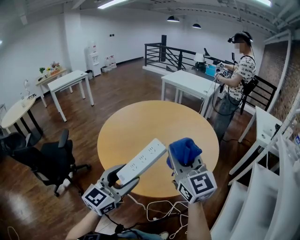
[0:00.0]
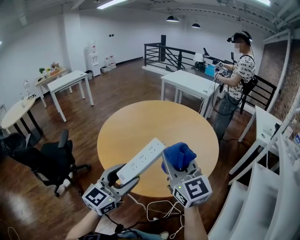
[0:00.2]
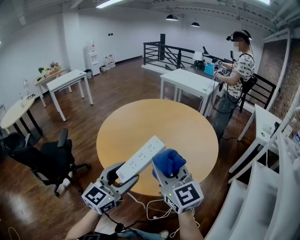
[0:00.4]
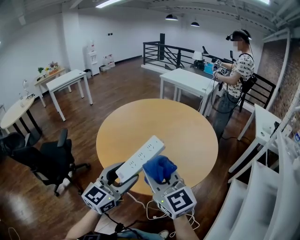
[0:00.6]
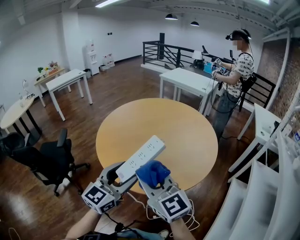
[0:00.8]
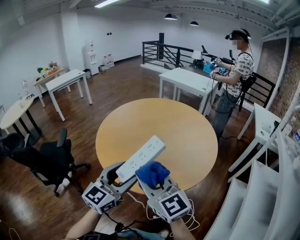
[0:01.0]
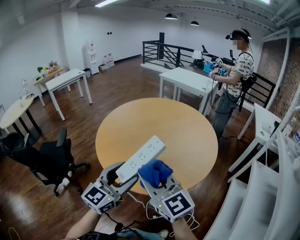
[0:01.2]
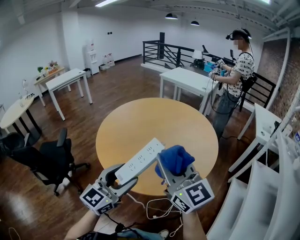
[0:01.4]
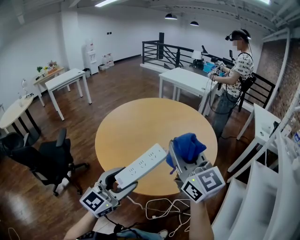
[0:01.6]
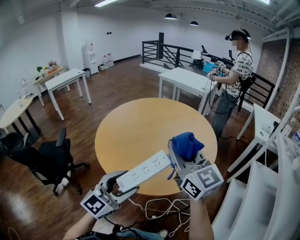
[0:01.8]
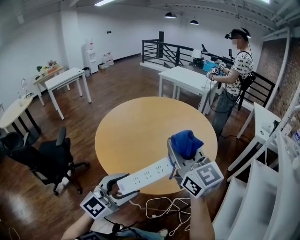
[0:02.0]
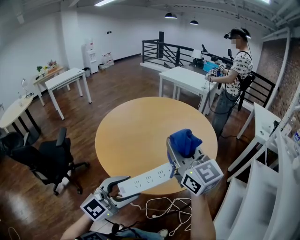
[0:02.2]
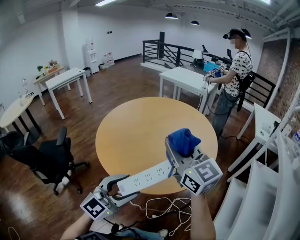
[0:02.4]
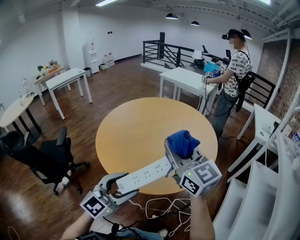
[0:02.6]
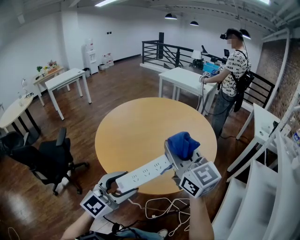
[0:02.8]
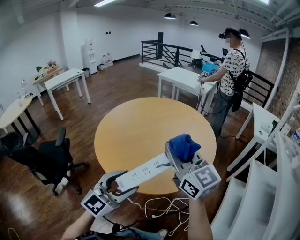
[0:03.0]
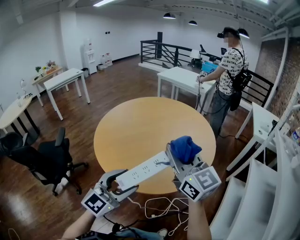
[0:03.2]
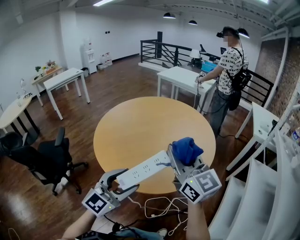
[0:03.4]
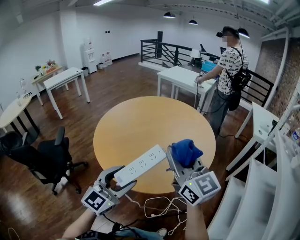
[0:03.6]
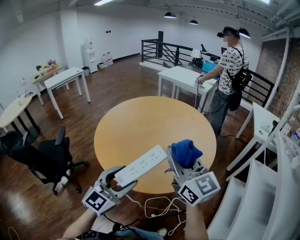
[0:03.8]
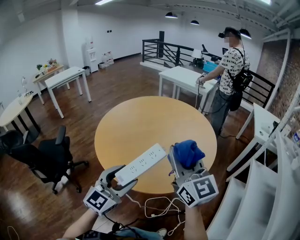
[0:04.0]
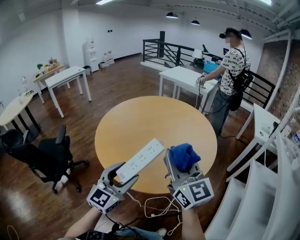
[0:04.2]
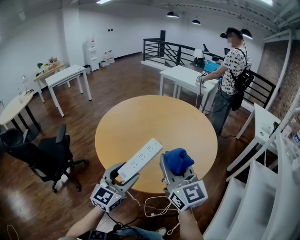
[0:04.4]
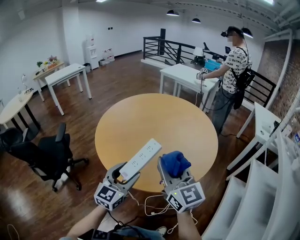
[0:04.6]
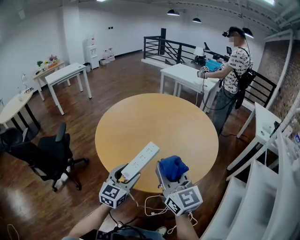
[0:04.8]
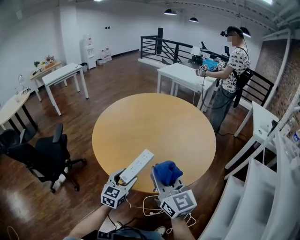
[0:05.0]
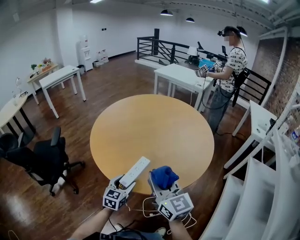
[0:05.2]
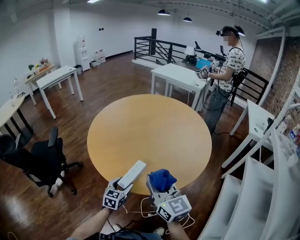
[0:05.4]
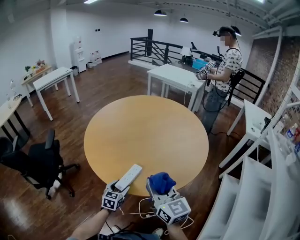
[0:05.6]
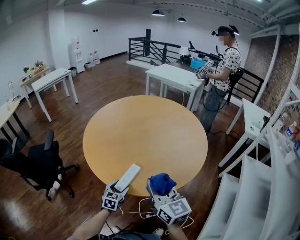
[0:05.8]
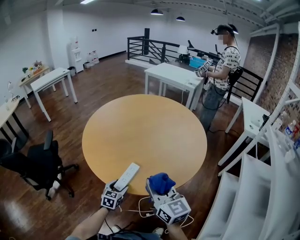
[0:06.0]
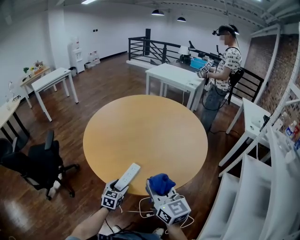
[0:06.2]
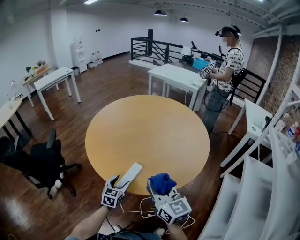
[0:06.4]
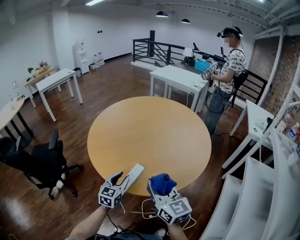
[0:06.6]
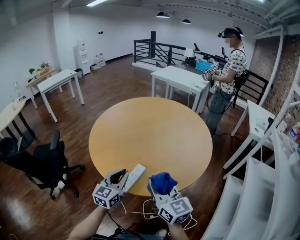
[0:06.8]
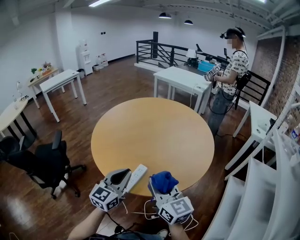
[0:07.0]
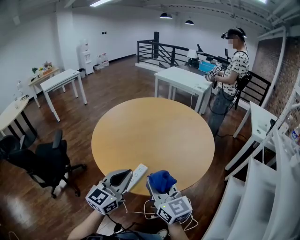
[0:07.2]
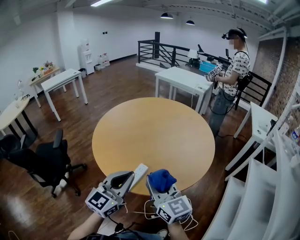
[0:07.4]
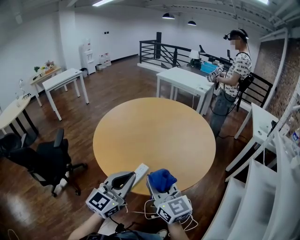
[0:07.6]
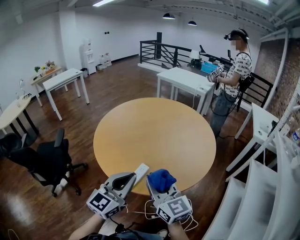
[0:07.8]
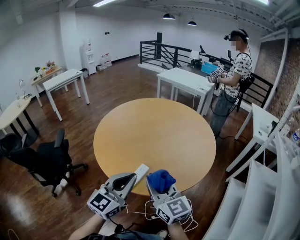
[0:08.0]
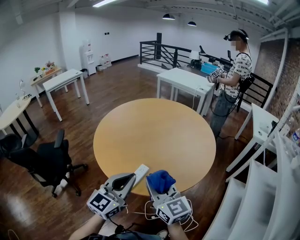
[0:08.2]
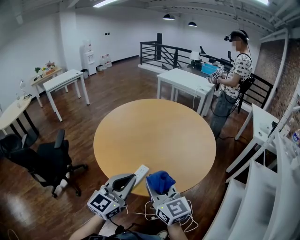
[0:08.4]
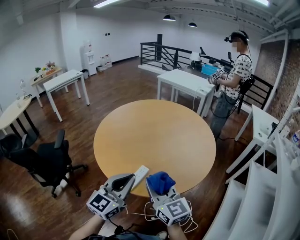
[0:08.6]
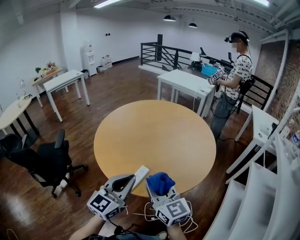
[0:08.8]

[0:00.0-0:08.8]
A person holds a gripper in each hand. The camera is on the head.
0:00.0 to 0:01.4: The right gripper travels to the left and back again, some 10 cm each way.
0:03.0 to 0:04.4: The right gripper shifts by about 5 cm. Meanwhile the left gripper goes approximately 5 cm forward.
0:04.4 to 0:05.8: The right gripper heads downward, covering about 10 cm; the left gripper moves downward, about 25 cm, and angles its fingers downward, by about 30 degrees.
0:05.8 to 0:07.4: The left gripper travels upward by roughly 30 cm, tips its fingers upward by about 40 degrees, and closes its fingers.
0:07.4 to 0:08.8: The two grippers keep their place.

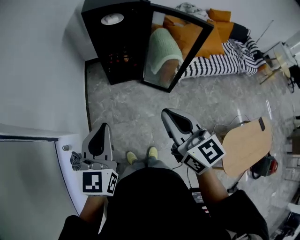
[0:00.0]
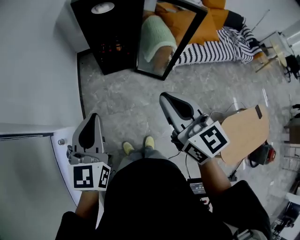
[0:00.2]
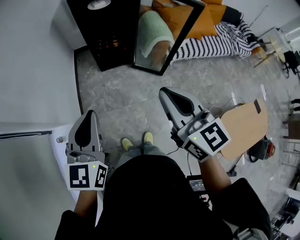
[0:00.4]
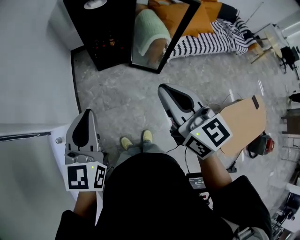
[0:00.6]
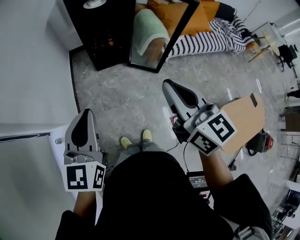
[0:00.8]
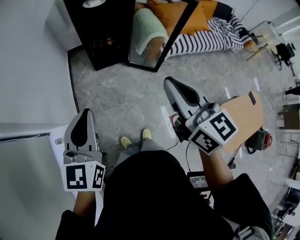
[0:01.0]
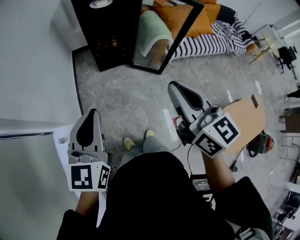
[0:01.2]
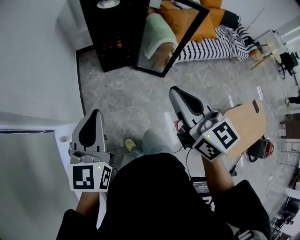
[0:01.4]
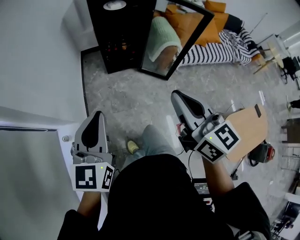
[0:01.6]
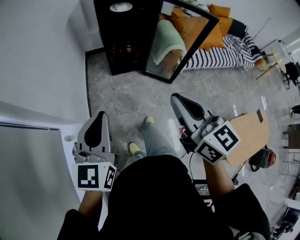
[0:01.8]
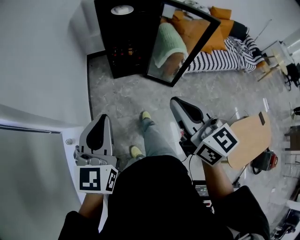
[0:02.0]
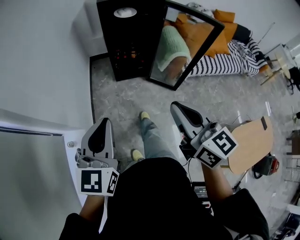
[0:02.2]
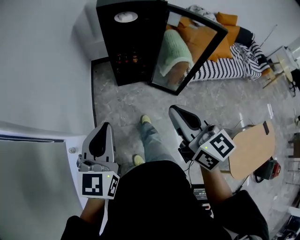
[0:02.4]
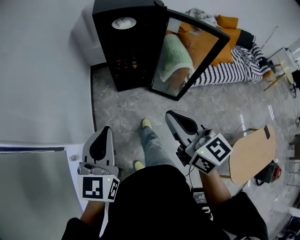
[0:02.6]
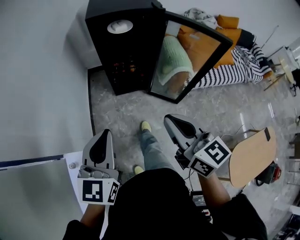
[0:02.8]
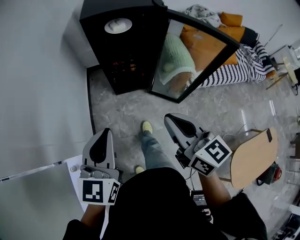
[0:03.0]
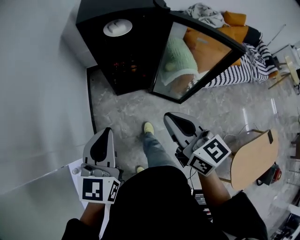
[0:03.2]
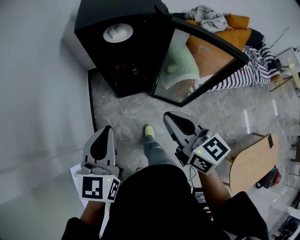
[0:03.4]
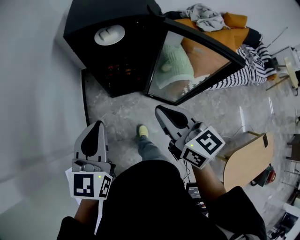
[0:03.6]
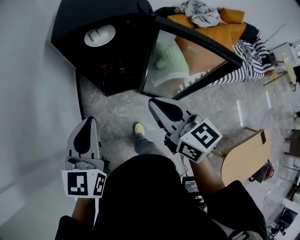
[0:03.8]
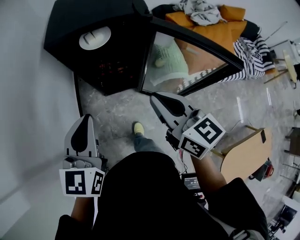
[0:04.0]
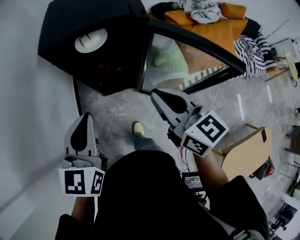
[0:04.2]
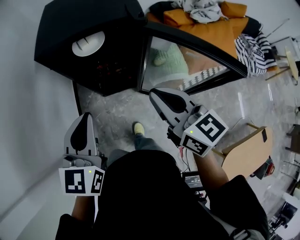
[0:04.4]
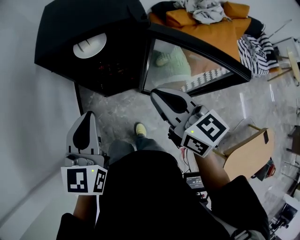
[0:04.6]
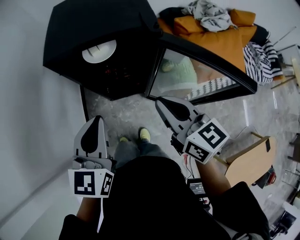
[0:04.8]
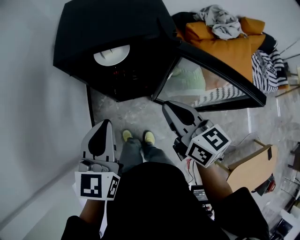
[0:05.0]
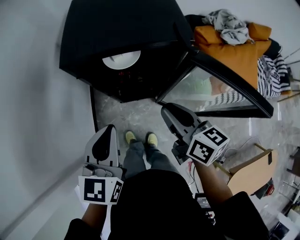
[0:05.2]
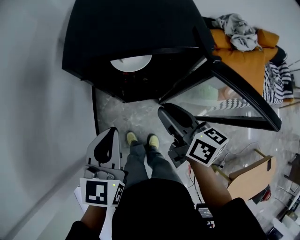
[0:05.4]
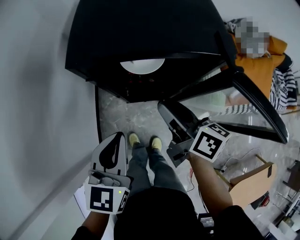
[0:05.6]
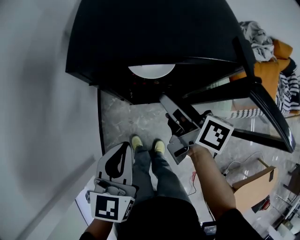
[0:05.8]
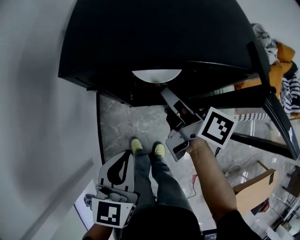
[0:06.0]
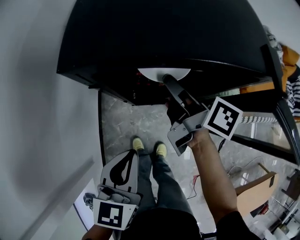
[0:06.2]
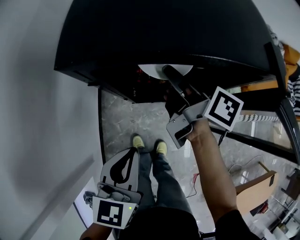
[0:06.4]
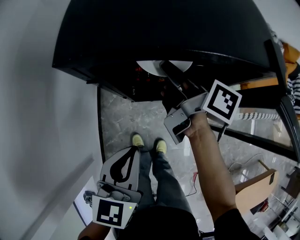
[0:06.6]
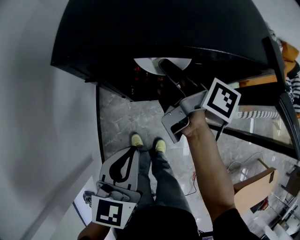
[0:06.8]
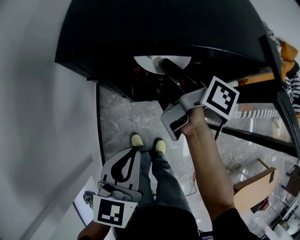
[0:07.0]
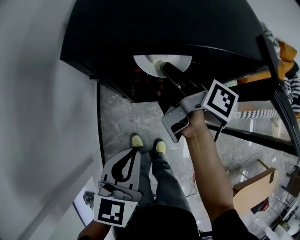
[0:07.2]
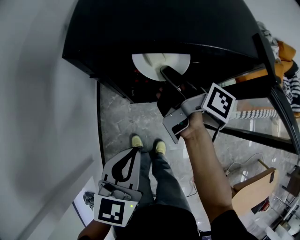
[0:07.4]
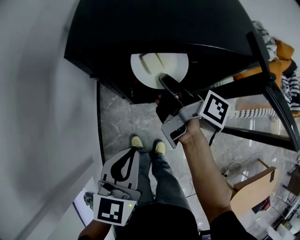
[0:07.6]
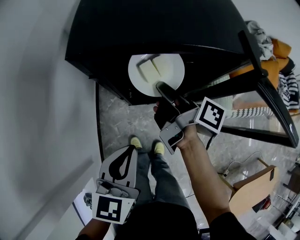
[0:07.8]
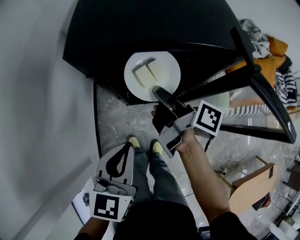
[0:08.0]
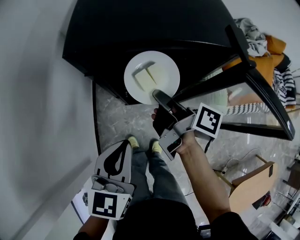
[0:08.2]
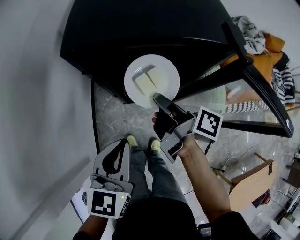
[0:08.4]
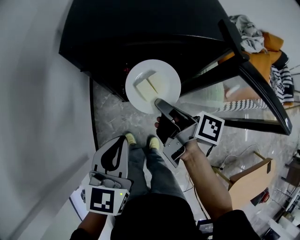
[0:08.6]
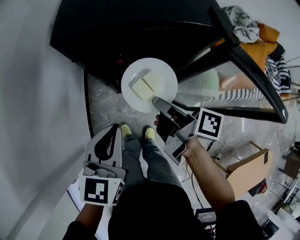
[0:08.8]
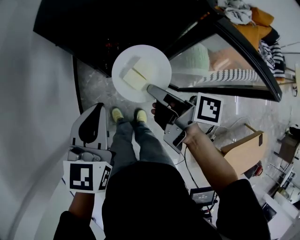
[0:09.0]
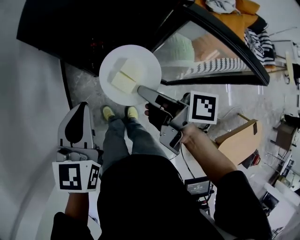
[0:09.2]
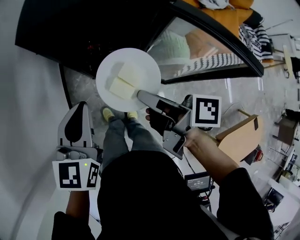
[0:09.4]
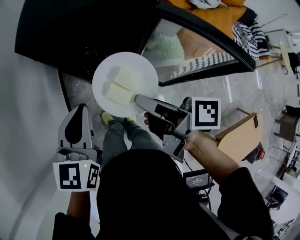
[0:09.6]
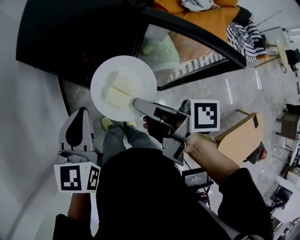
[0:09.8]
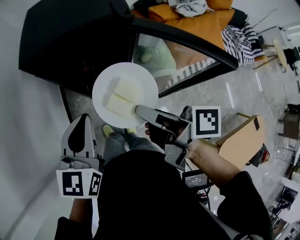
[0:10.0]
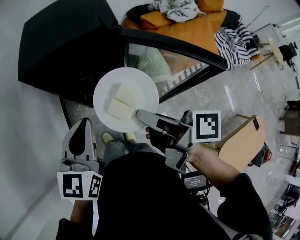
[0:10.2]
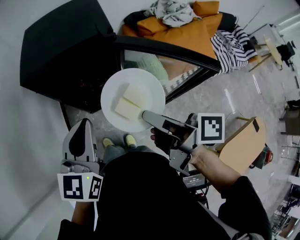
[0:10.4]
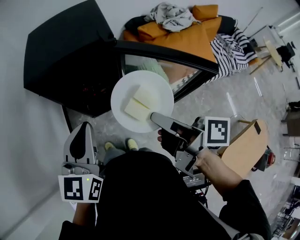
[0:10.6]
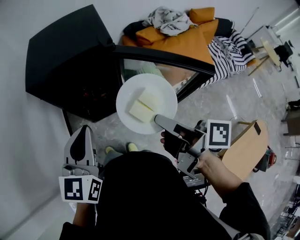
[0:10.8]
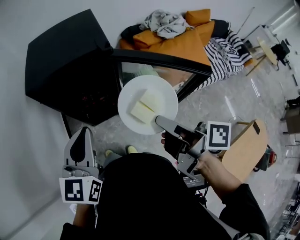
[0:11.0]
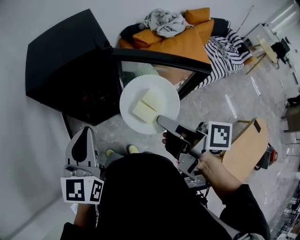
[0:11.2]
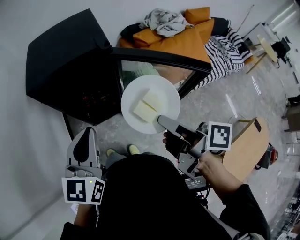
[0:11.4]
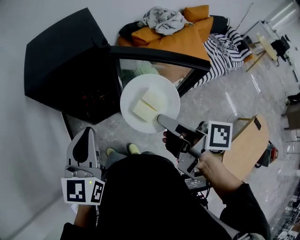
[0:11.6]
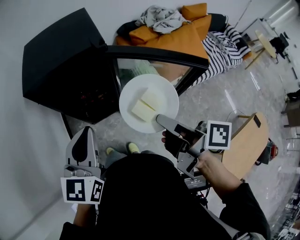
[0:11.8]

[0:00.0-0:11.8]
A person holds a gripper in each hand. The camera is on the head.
0:00.0 to 0:01.4: The left gripper goes roughly 5 cm to the left; the right gripper changes place by about 5 cm.
0:01.4 to 0:03.0: The right gripper goes approximately 20 cm forward and downward; the left gripper travels forward by approximately 20 cm.
0:03.0 to 0:04.4: Both grippers travel together forward and to the right, about 25 cm.
0:04.4 to 0:06.0: The left gripper moves downward, forward and to the left, approximately 20 cm. Meanwhile the right gripper heads forward, downward and to the left, covering about 30 cm, twists about 50 degrees clockwise, seen from behind, and opens its fingers.
0:06.0 to 0:07.4: The right gripper swivels approximately 20 degrees, and closes its fingers.
0:07.4 to 0:08.8: The right gripper goes roughly 15 cm backward.
0:08.8 to 0:10.4: The left gripper shifts approximately 20 cm upward, to the right and backward. The right gripper moves upward, backward and to the right, about 25 cm.
0:10.4 to 0:11.8: The right gripper shifts roughly 5 cm to the right.

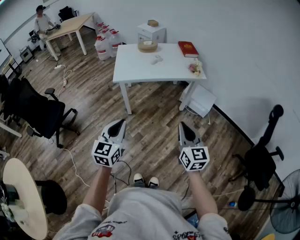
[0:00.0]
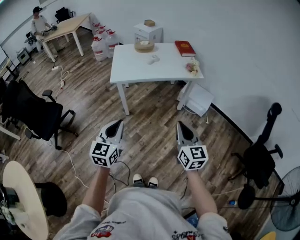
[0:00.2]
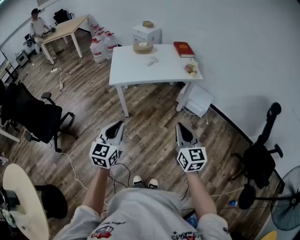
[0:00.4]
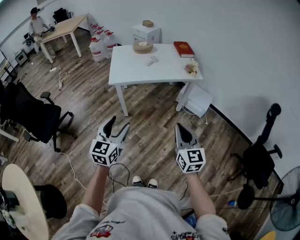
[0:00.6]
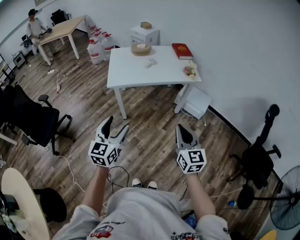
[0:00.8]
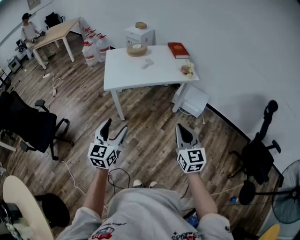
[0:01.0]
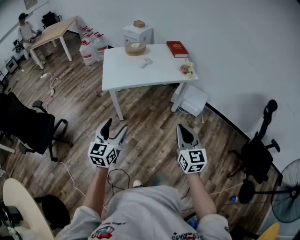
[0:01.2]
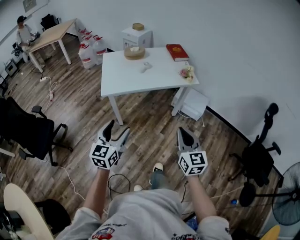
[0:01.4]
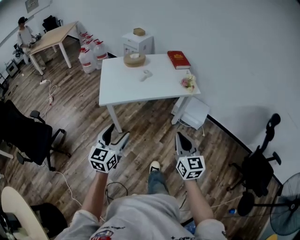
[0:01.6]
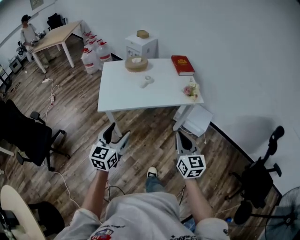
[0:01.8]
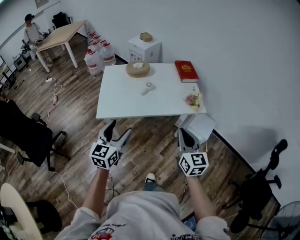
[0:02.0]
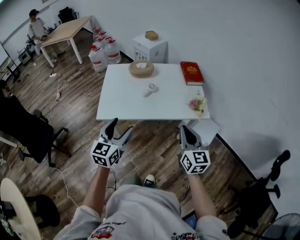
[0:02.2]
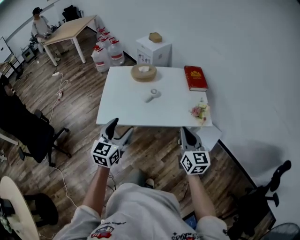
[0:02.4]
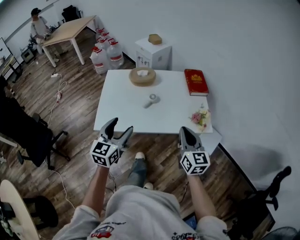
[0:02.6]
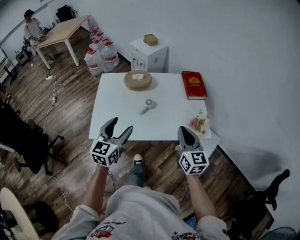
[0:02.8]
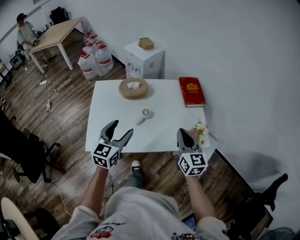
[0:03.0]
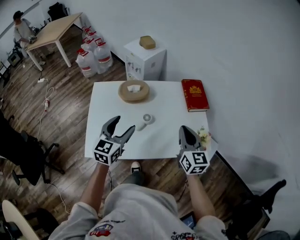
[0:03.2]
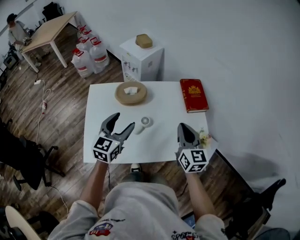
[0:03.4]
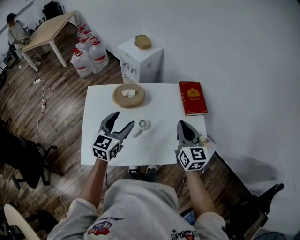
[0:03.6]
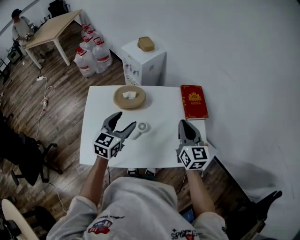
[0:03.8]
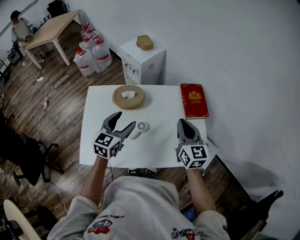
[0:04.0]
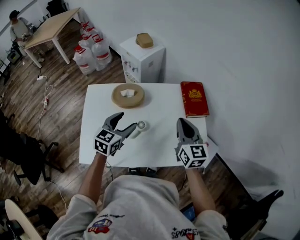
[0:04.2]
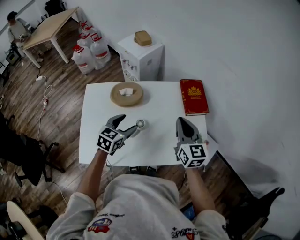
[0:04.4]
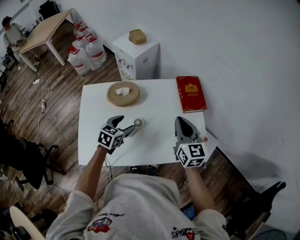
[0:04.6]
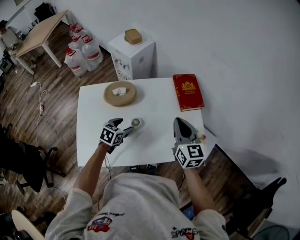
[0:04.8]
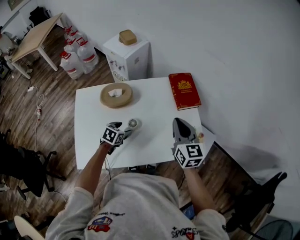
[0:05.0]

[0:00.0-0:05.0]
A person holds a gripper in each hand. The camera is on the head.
0:00.0 to 0:01.6: Both grippers move forward, about 20 cm. The left gripper opens.
0:01.6 to 0:03.4: The two grippers travel together, forward, about 70 cm.
0:03.4 to 0:05.0: The left gripper shifts about 25 cm downward, and tilts its fingers some 40 degrees downward; the right gripper goes some 10 cm forward and to the right.
